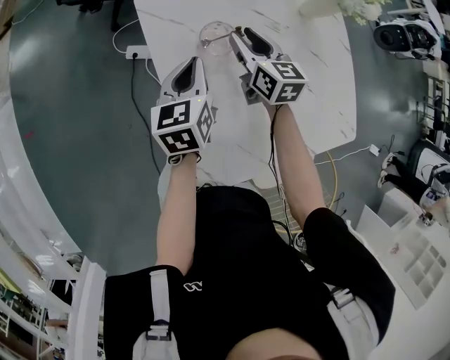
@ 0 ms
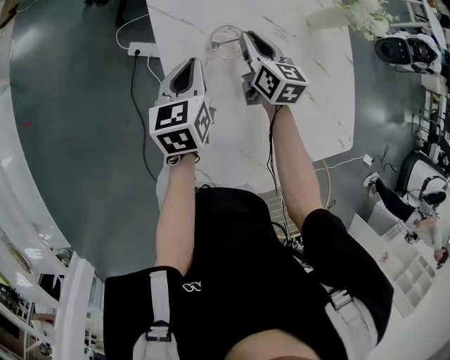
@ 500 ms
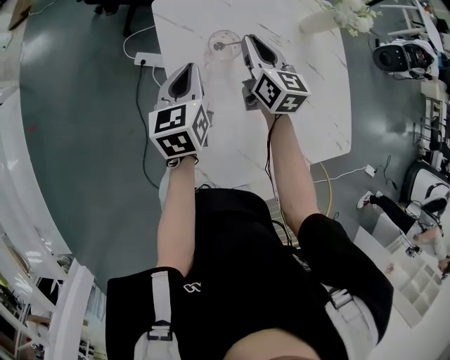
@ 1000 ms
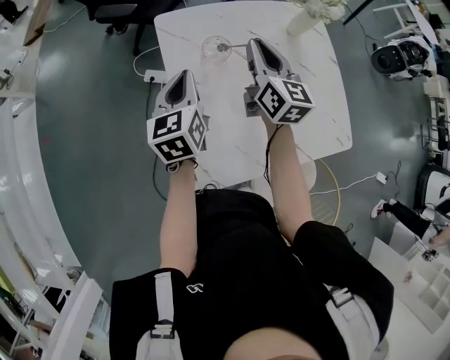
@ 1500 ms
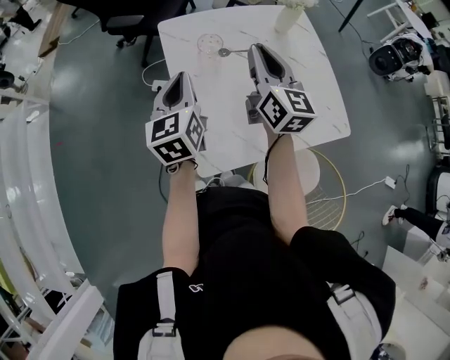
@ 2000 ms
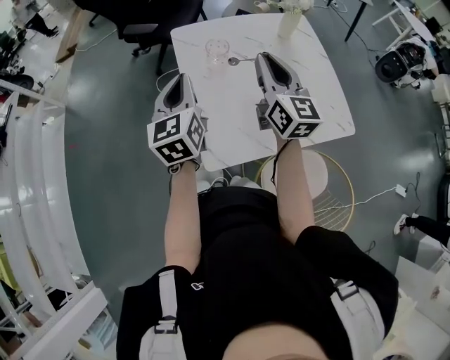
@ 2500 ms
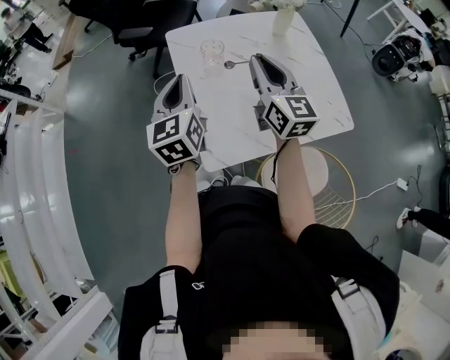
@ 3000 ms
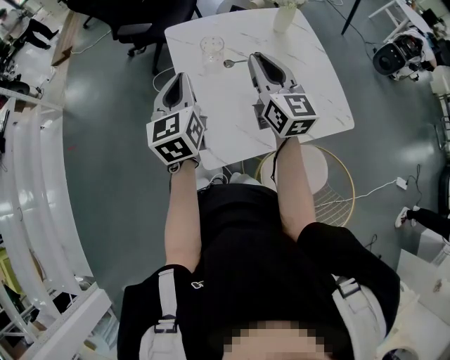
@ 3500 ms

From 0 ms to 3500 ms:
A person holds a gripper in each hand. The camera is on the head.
From 0 ms to 2000 ms: The grippers both shift upward and backward by approximately 25 cm. The right gripper rotates about 30 degrees, and closes.
From 2000 ms to 3500 ms: The left gripper changes place by about 5 cm; the right gripper is displaced backward by approximately 5 cm.

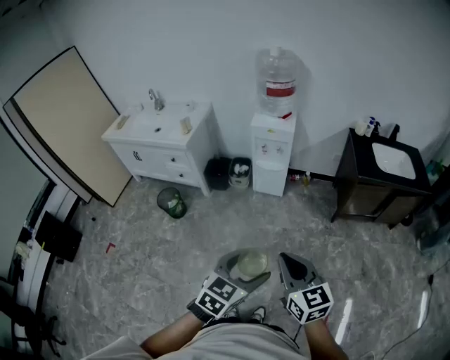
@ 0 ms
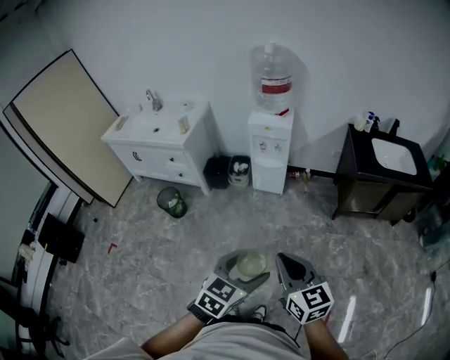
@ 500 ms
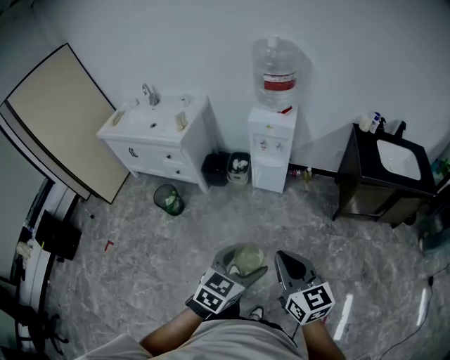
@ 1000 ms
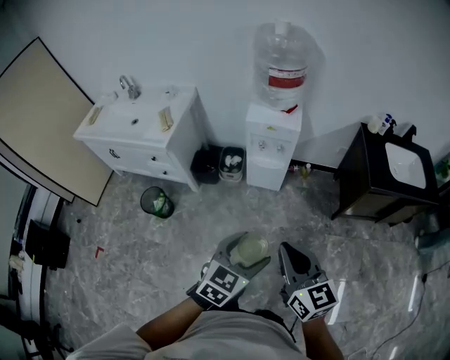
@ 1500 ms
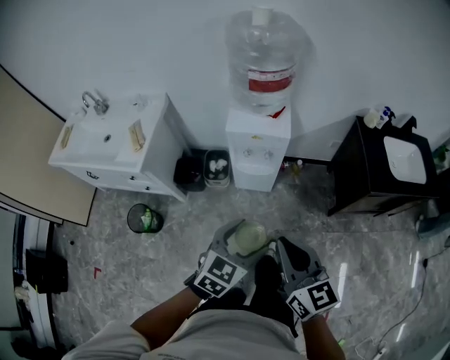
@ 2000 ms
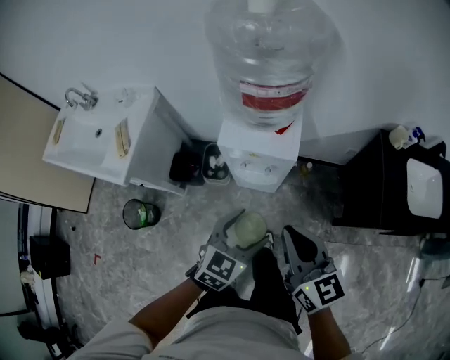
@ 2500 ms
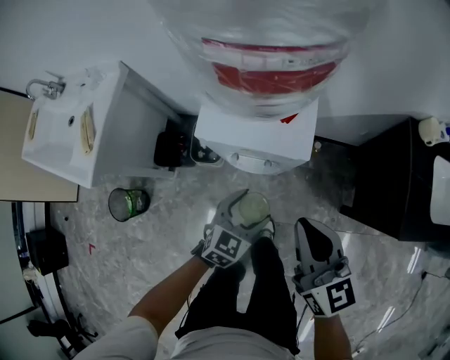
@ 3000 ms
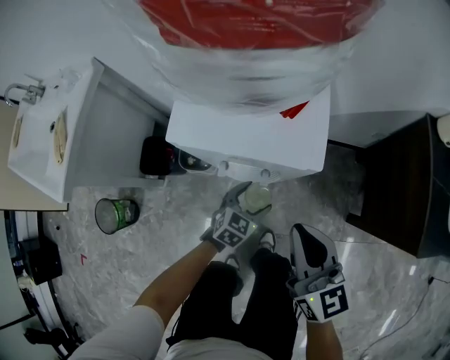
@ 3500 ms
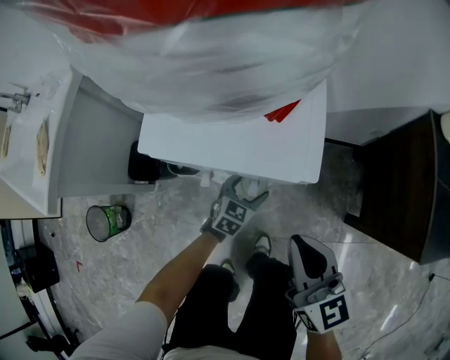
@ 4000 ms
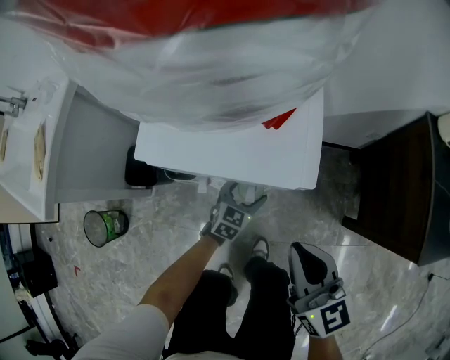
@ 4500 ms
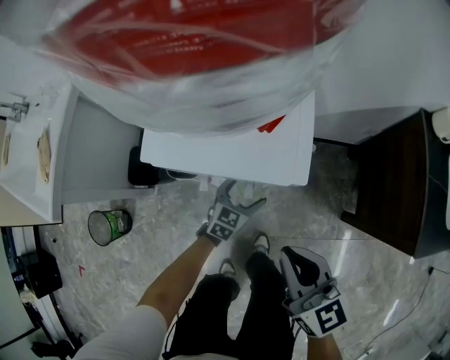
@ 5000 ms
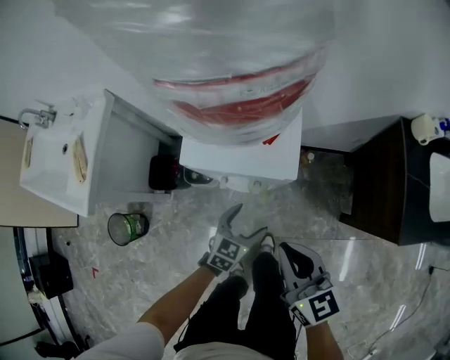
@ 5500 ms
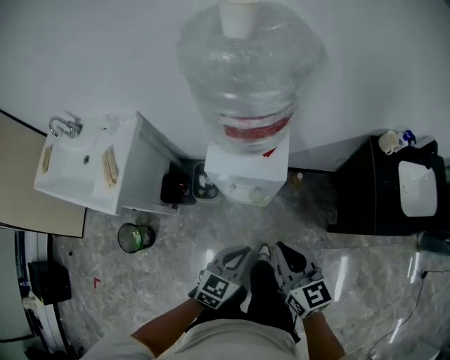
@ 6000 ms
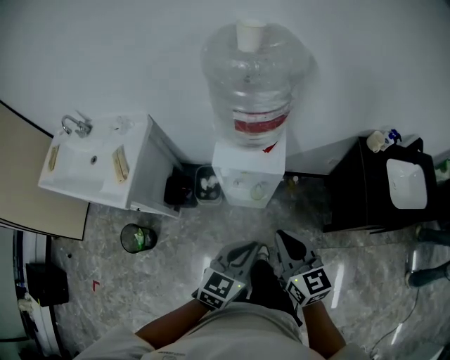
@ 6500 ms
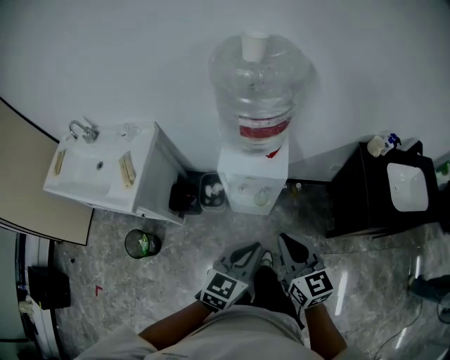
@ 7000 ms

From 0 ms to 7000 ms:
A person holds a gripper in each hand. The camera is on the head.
From 0 ms to 2000 ms: Both grippers are carried forward, some 40 cm.
From 2000 ms to 3500 ms: The left gripper moves downward and forward, approximately 60 cm, while the right gripper goes approximately 50 cm forward and downward.
From 3500 ms to 5000 ms: The left gripper heads forward, covering some 5 cm.
From 5000 ms to 7000 ms: The left gripper heads upward and backward, covering about 60 cm, and closes up, while the right gripper heads upward and backward, covering about 30 cm.

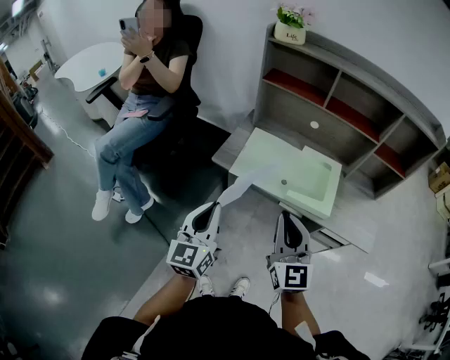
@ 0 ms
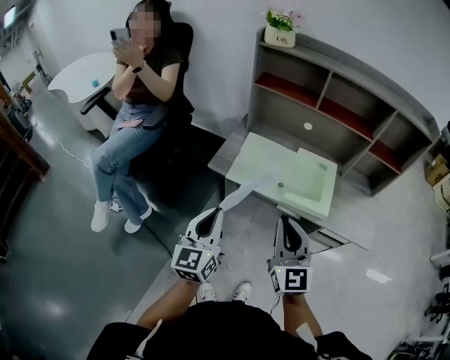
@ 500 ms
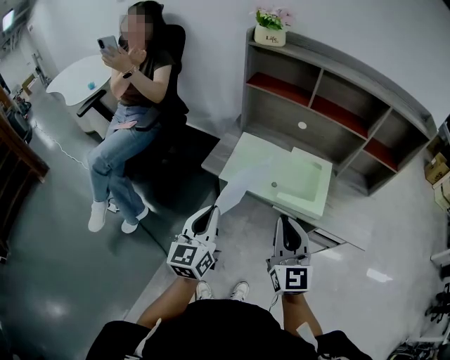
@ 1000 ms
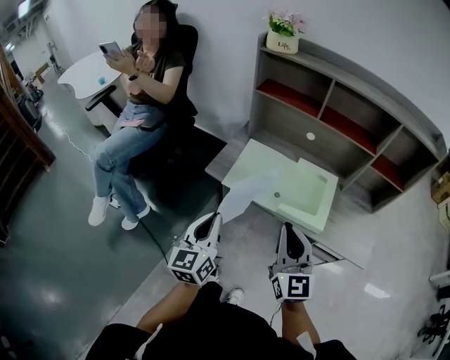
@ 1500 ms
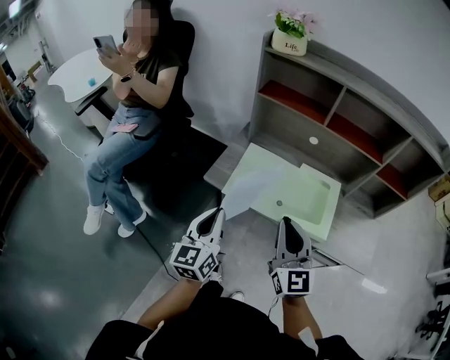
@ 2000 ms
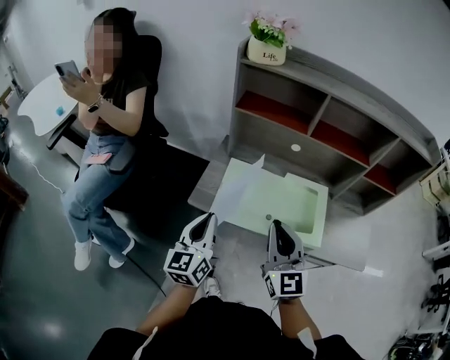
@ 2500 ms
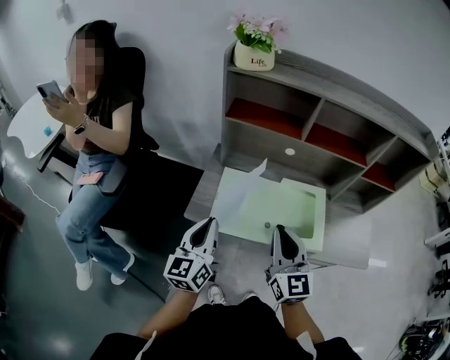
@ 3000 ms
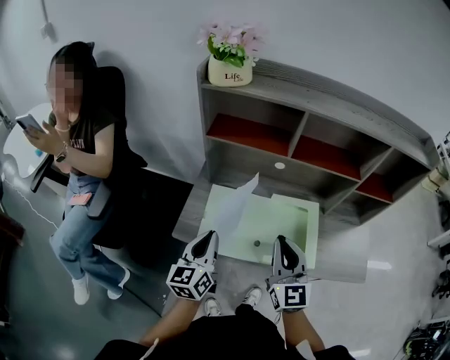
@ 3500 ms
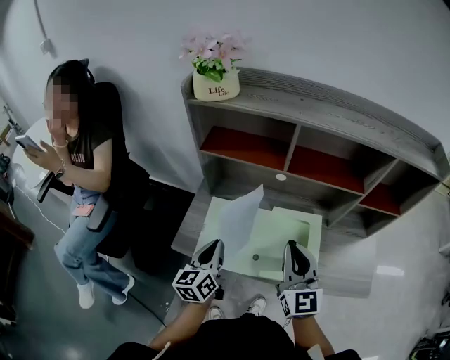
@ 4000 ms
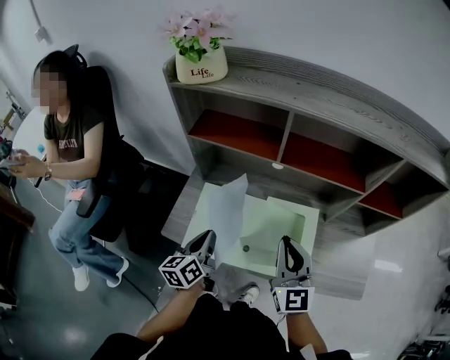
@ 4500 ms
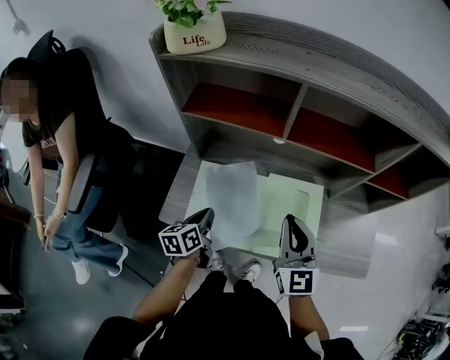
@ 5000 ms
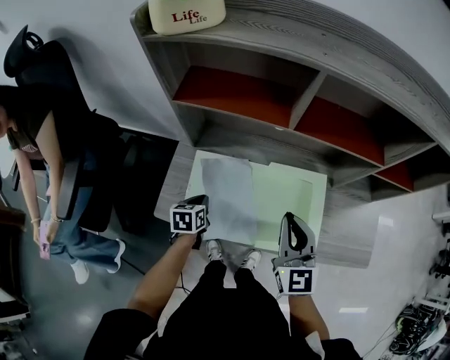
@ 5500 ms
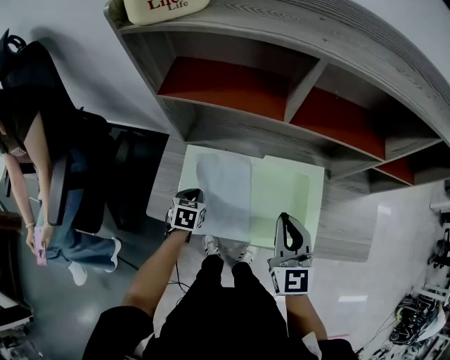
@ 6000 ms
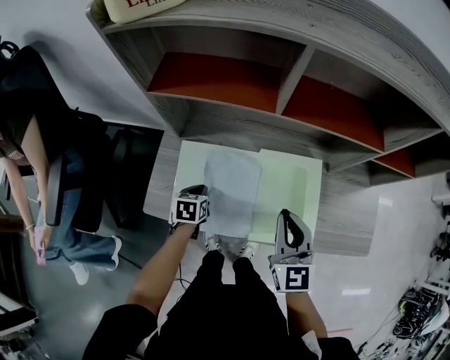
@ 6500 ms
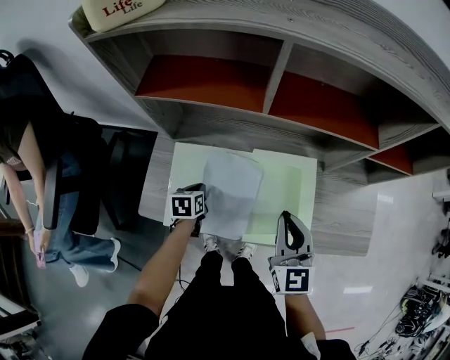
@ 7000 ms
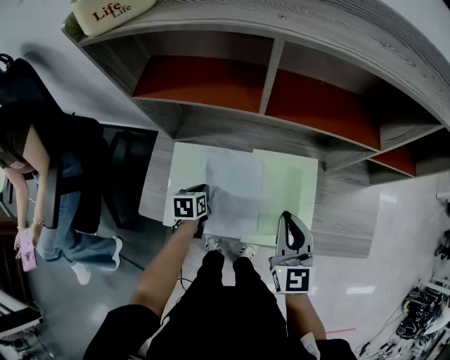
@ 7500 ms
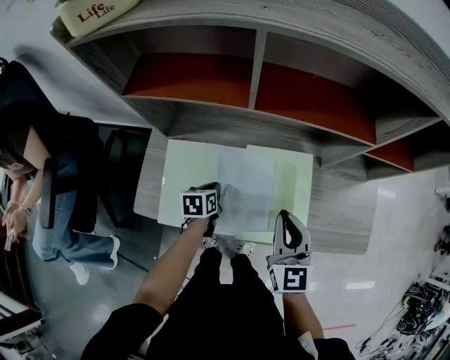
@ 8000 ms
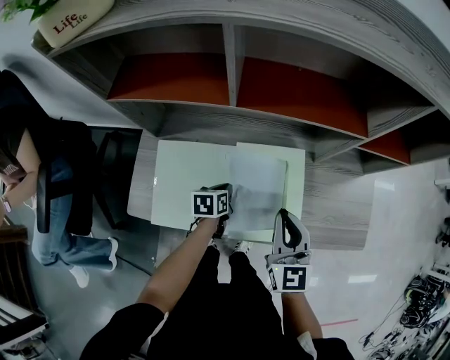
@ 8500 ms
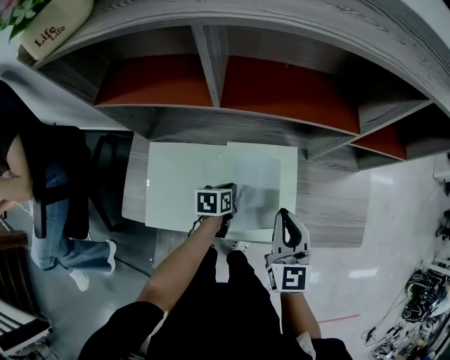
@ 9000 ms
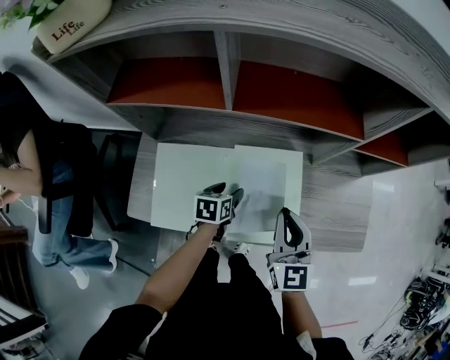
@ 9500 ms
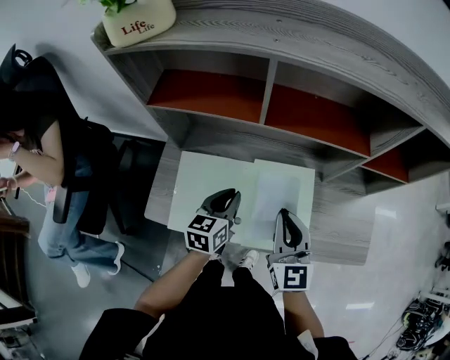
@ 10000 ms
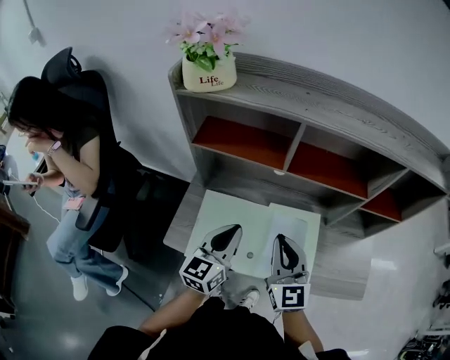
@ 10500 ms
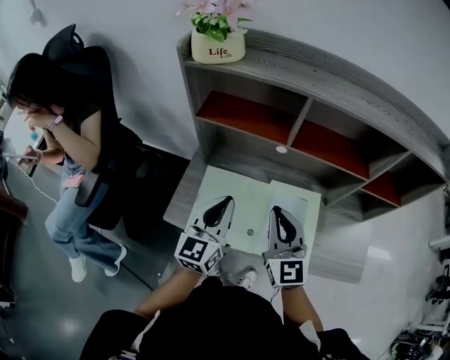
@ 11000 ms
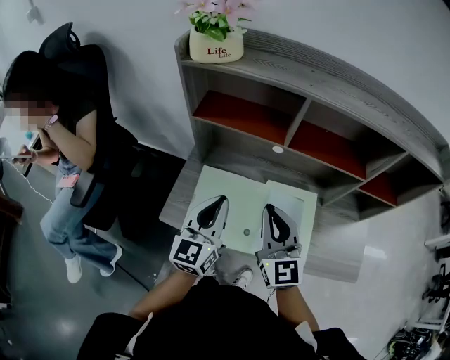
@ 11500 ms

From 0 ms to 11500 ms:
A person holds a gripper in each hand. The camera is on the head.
From 0 ms to 2000 ms: The grippers both shift forward by about 10 cm.
From 2000 ms to 4000 ms: The left gripper shifts some 20 cm forward. Meanwhile the right gripper moves forward and to the right, roughly 20 cm.
From 4000 ms to 6000 ms: The right gripper shifts about 10 cm downward. The left gripper shifts roughly 25 cm downward, and tilts its fingers approximately 50 degrees downward.
From 6000 ms to 7500 ms: The two grippers go approximately 5 cm to the right.
From 7500 ms to 9500 ms: The right gripper ends up approximately 5 cm from where it was, while the left gripper heads to the right, covering approximately 15 cm, and opens.
From 9500 ms to 11500 ms: The left gripper goes approximately 35 cm upward and to the left, angles its fingers upward, by roughly 50 degrees, and closes its fingers. Meanwhile the right gripper is displaced to the left and upward by about 20 cm, and turns by some 20 degrees.

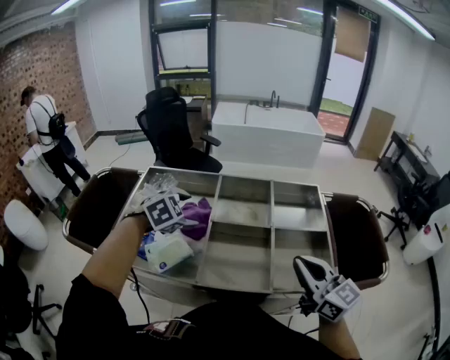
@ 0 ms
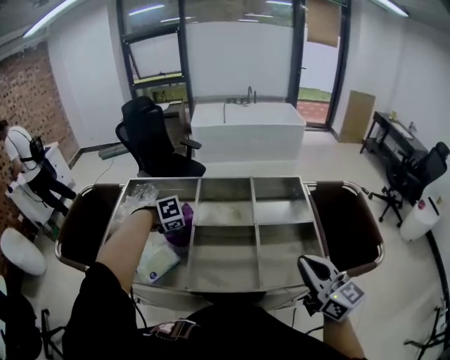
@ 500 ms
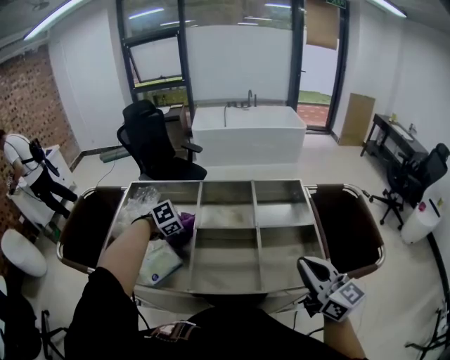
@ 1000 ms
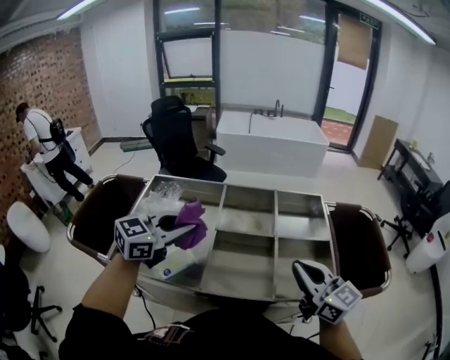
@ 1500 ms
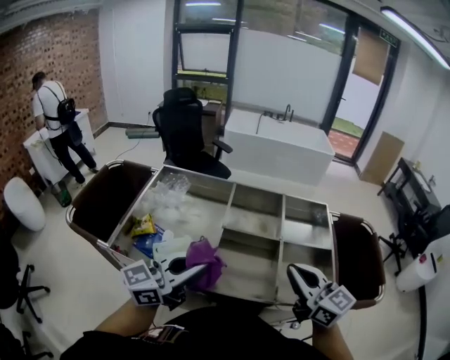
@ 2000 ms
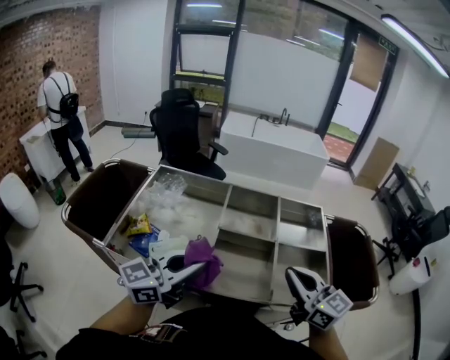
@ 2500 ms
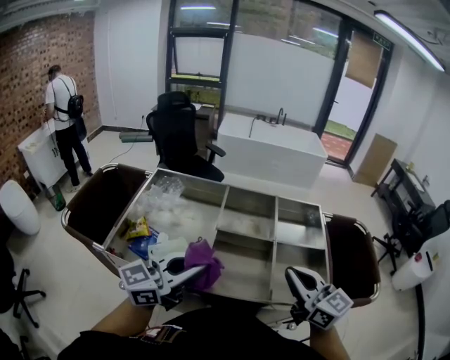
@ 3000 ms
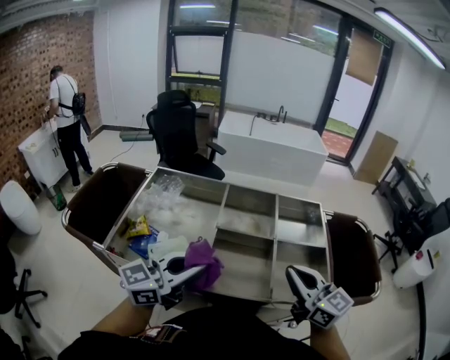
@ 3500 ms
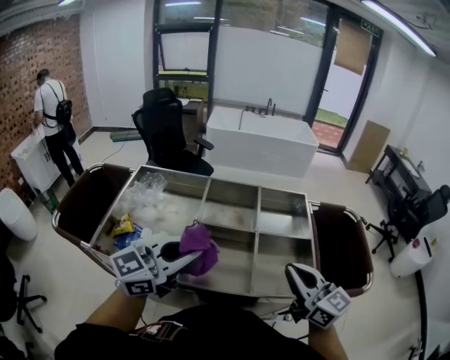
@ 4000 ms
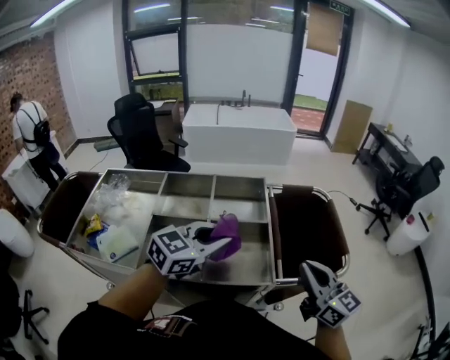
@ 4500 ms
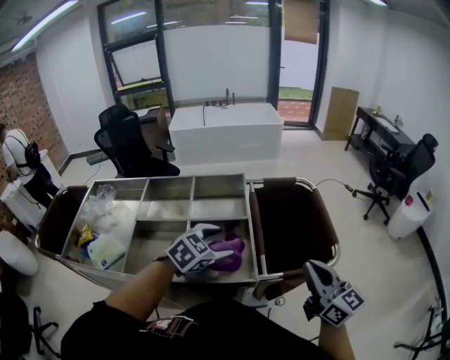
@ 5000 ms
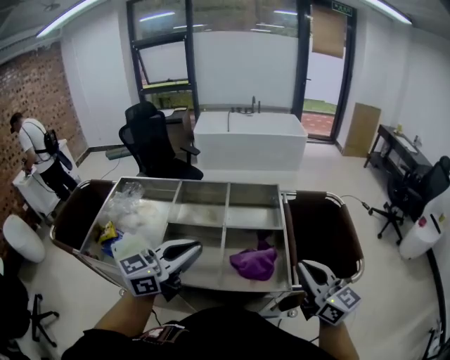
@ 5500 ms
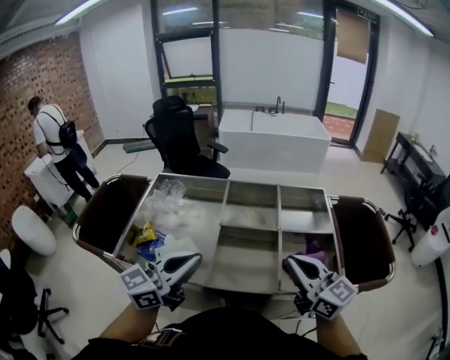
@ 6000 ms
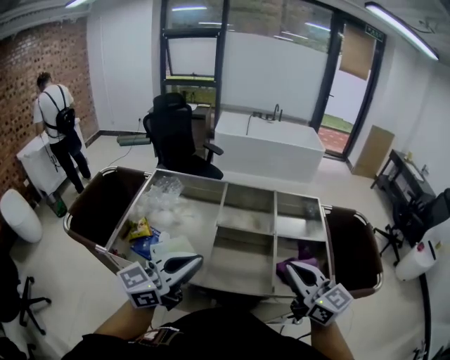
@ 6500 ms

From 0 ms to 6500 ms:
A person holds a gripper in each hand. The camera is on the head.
From 0 ms to 2000 ms: The left gripper moves some 20 cm, angles its fingers upward, by about 60 degrees, and closes its fingers.
From 2000 ms to 4500 ms: The grippers both shift to the right by some 25 cm. The left gripper swivels some 30 degrees.
From 4500 ms to 6500 ms: The left gripper is displaced to the left and backward by about 30 cm, swivels some 30 degrees, and opens and closes again. Meanwhile the right gripper goes some 25 cm to the left.
